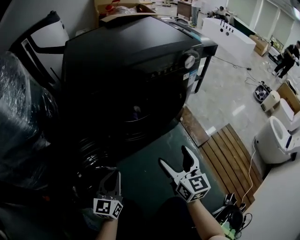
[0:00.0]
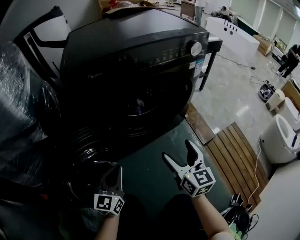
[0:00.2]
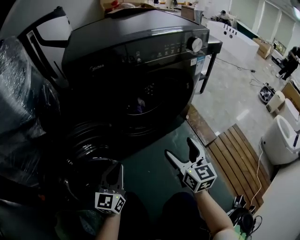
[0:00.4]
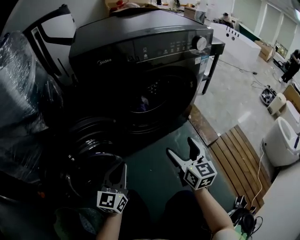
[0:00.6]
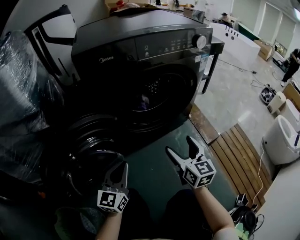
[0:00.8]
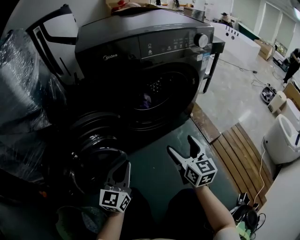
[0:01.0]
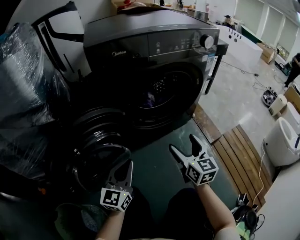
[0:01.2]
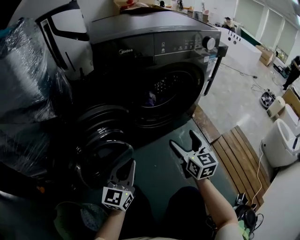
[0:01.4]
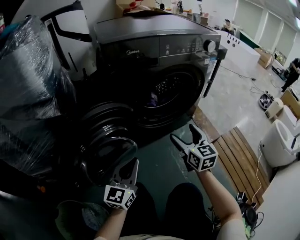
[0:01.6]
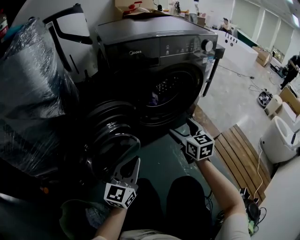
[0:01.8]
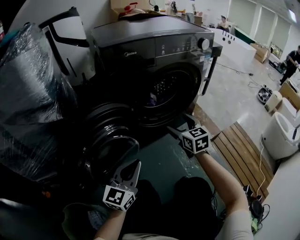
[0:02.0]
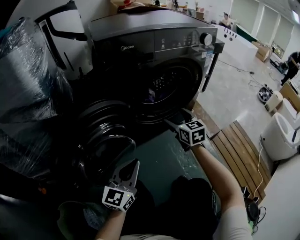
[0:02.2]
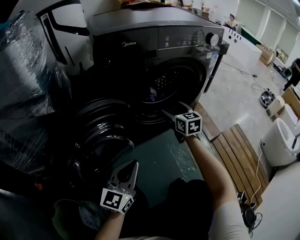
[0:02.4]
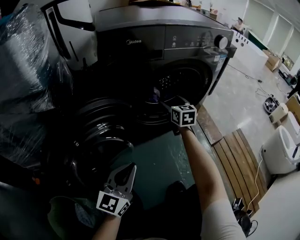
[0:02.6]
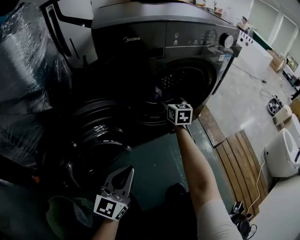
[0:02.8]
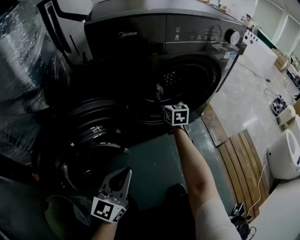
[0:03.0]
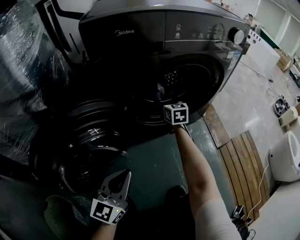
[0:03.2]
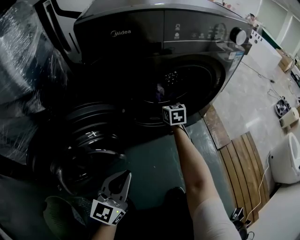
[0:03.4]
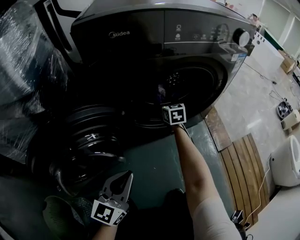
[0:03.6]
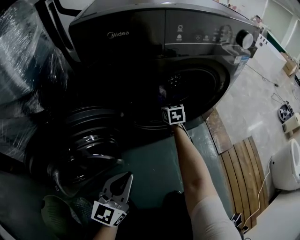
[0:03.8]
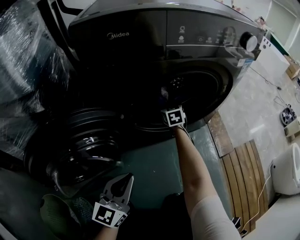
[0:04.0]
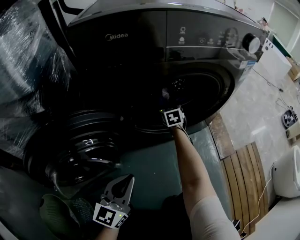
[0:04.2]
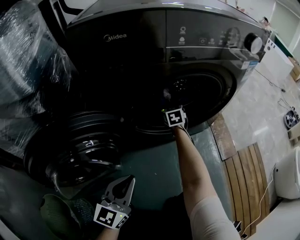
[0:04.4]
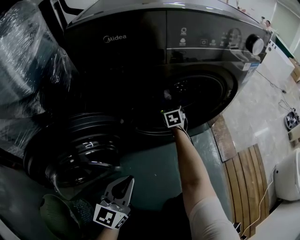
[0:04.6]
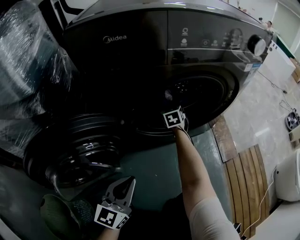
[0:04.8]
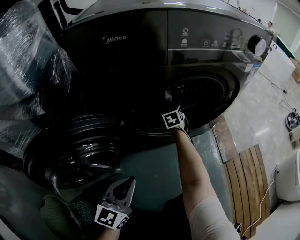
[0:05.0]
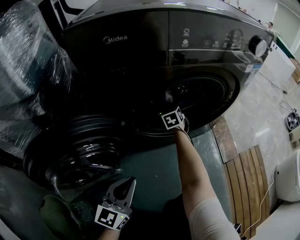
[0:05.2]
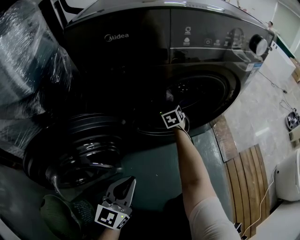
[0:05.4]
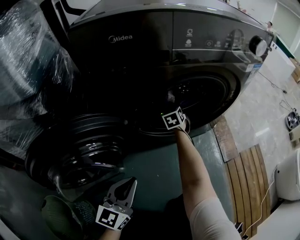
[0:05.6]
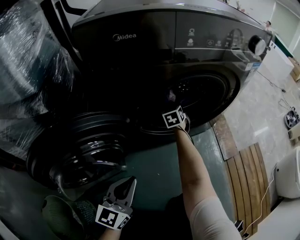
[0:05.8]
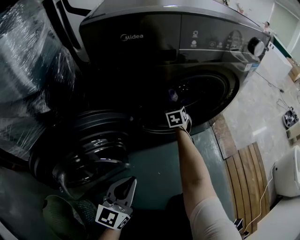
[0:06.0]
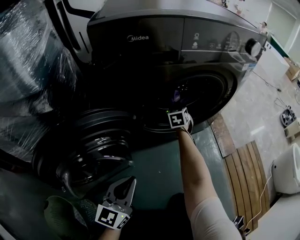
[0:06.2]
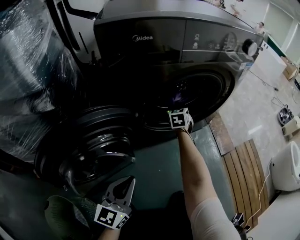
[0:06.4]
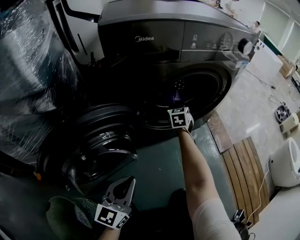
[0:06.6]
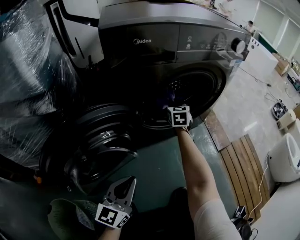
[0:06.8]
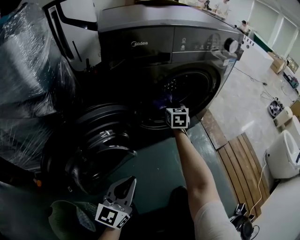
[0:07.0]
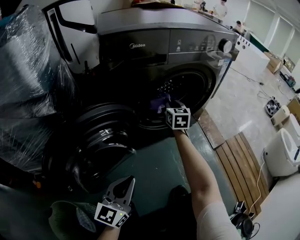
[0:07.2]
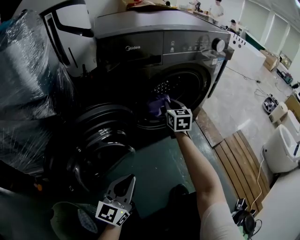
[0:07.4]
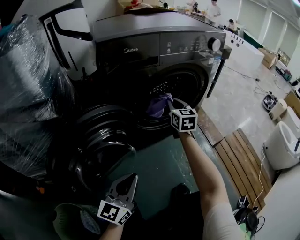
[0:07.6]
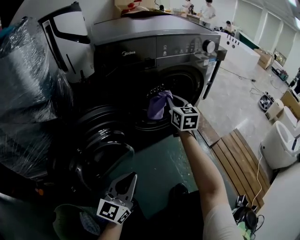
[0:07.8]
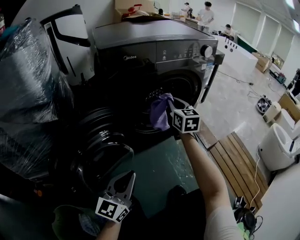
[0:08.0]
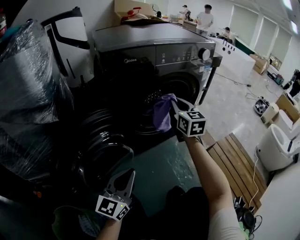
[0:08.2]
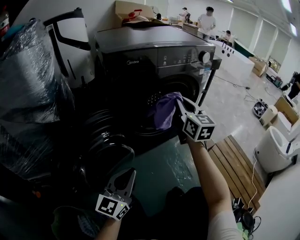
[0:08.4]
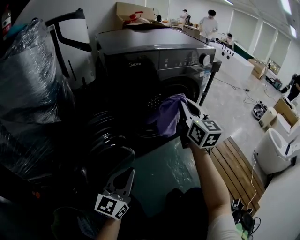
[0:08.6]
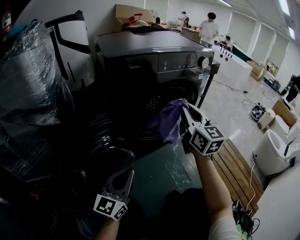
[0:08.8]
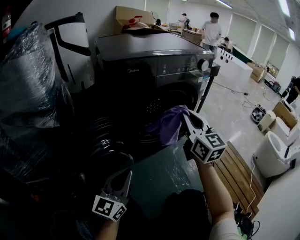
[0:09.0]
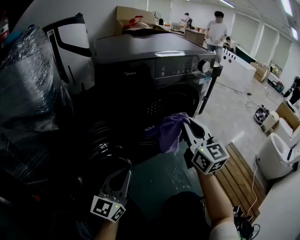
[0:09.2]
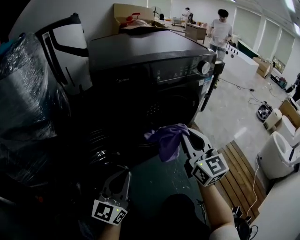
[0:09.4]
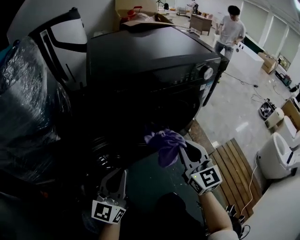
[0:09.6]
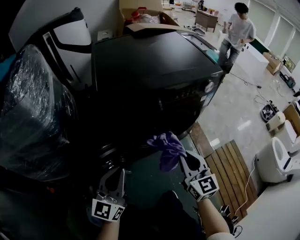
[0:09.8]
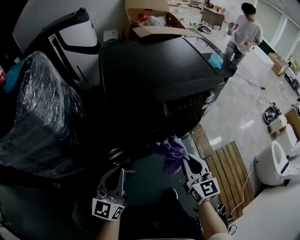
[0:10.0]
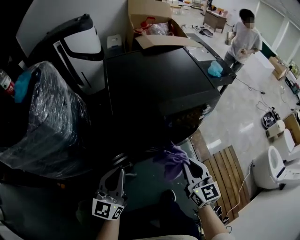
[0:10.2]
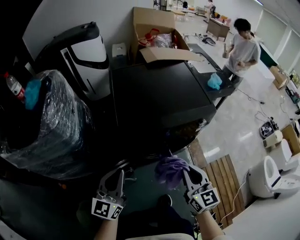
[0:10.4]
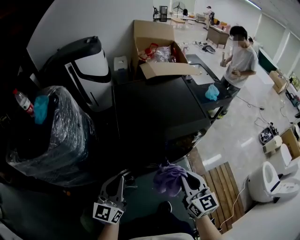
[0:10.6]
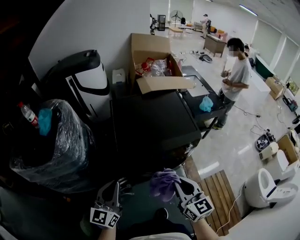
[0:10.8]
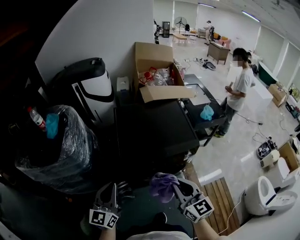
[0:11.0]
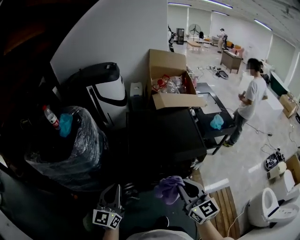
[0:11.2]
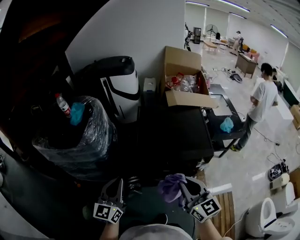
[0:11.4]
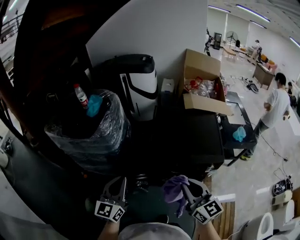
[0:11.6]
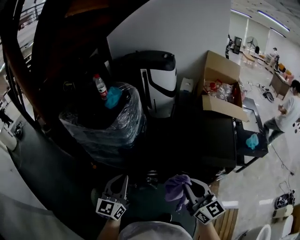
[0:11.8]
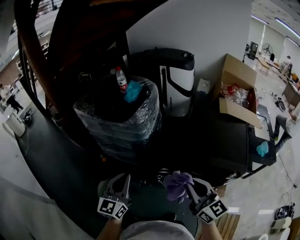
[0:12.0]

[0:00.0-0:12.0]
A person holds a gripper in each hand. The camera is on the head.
0:00.0 to 0:01.6: The left gripper heads backward and downward, covering about 10 cm; the right gripper shifts approximately 10 cm downward and to the left.
0:01.6 to 0:03.0: The right gripper goes about 30 cm forward and downward.
0:03.0 to 0:04.4: The left gripper changes place by approximately 5 cm; the right gripper moves forward and downward, some 10 cm.
0:04.4 to 0:06.0: The right gripper closes up.
0:06.0 to 0:07.6: The right gripper shifts about 25 cm upward and backward, and rotates some 30 degrees. The left gripper goes roughly 5 cm backward.
0:07.6 to 0:09.0: The left gripper moves upward, approximately 5 cm. Meanwhile the right gripper heads upward and backward, covering roughly 25 cm.
0:09.0 to 0:10.4: The left gripper goes some 35 cm upward; the right gripper heads upward, covering some 20 cm.
0:10.4 to 0:12.0: Both grippers move upward, approximately 25 cm. The left gripper rotates roughly 40 degrees. Meanwhile the right gripper turns by roughly 50 degrees.

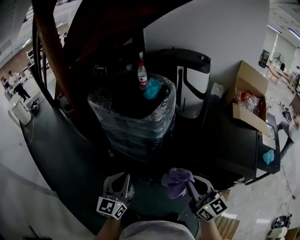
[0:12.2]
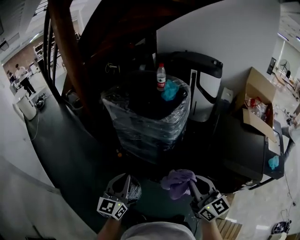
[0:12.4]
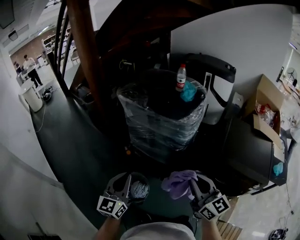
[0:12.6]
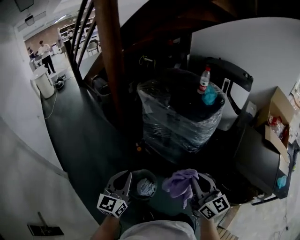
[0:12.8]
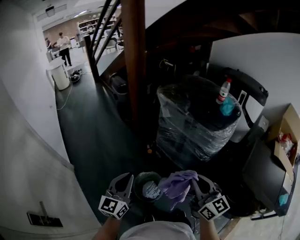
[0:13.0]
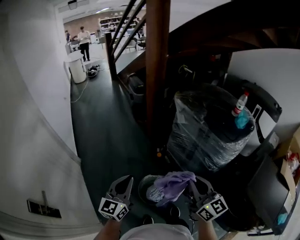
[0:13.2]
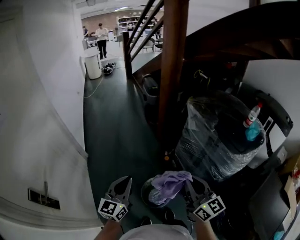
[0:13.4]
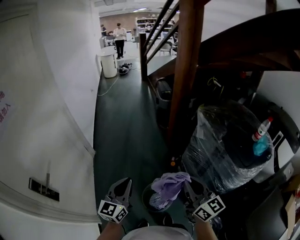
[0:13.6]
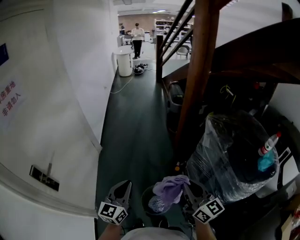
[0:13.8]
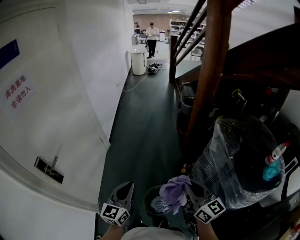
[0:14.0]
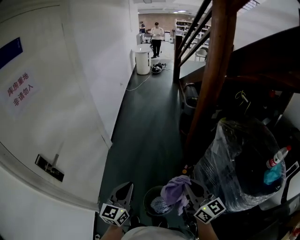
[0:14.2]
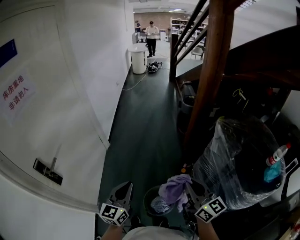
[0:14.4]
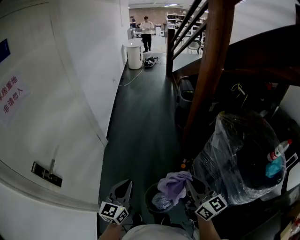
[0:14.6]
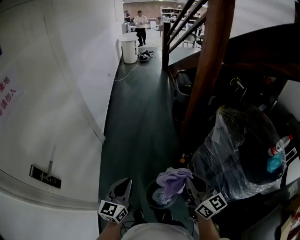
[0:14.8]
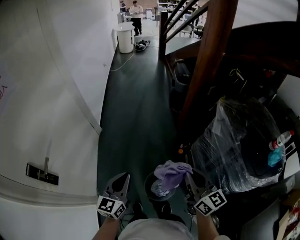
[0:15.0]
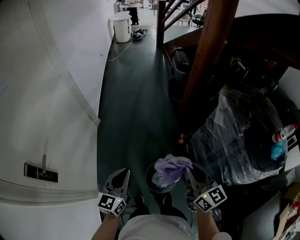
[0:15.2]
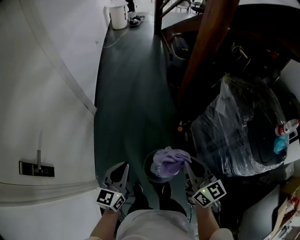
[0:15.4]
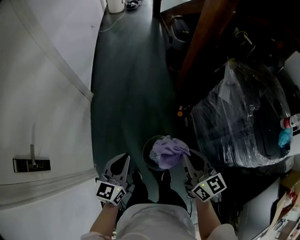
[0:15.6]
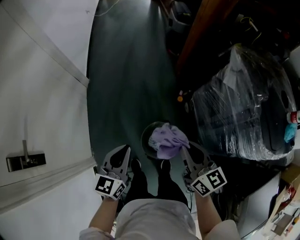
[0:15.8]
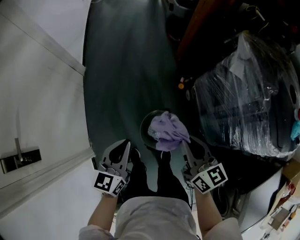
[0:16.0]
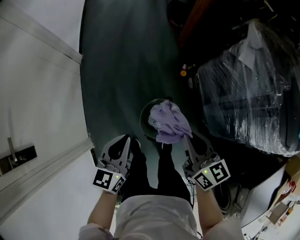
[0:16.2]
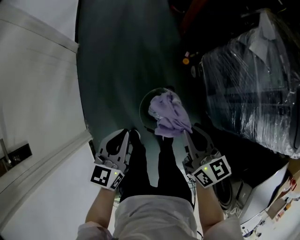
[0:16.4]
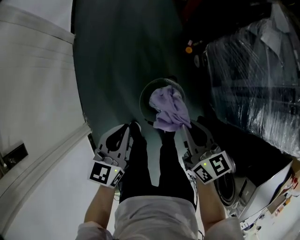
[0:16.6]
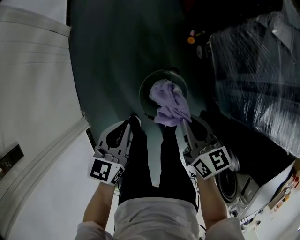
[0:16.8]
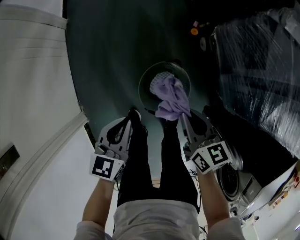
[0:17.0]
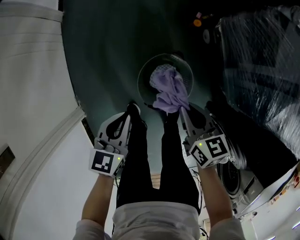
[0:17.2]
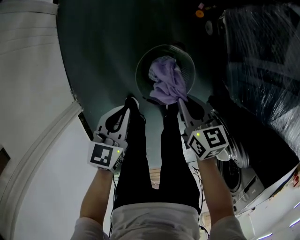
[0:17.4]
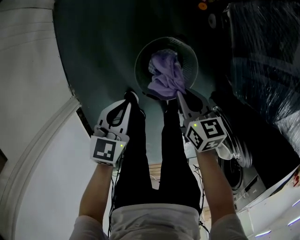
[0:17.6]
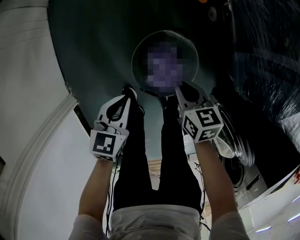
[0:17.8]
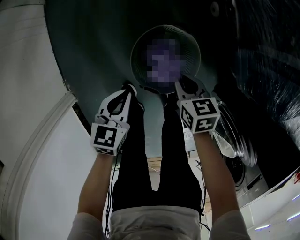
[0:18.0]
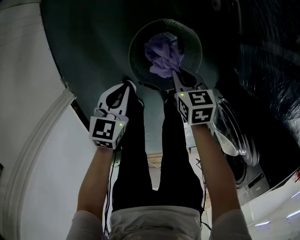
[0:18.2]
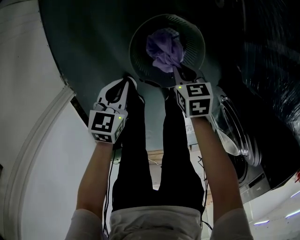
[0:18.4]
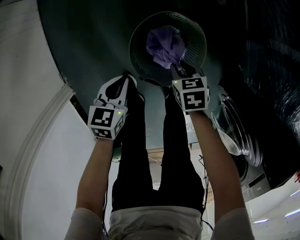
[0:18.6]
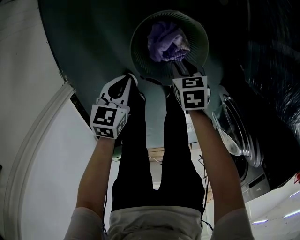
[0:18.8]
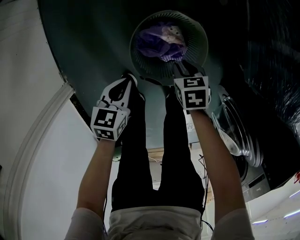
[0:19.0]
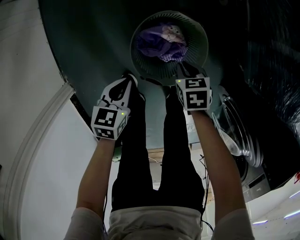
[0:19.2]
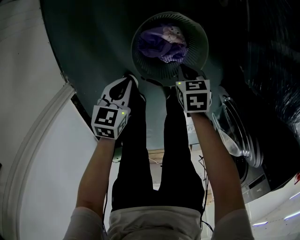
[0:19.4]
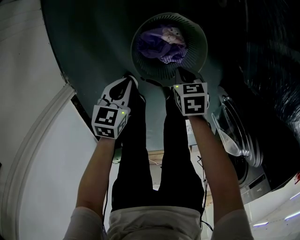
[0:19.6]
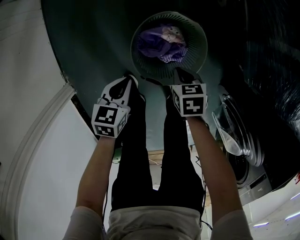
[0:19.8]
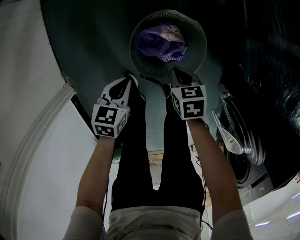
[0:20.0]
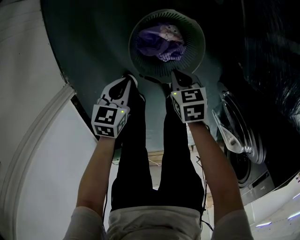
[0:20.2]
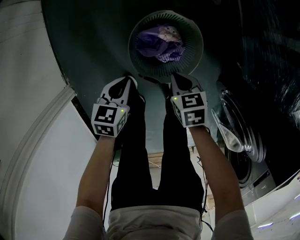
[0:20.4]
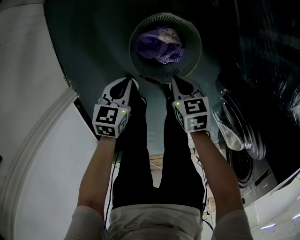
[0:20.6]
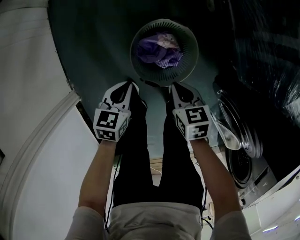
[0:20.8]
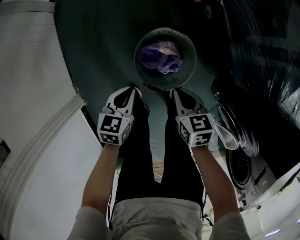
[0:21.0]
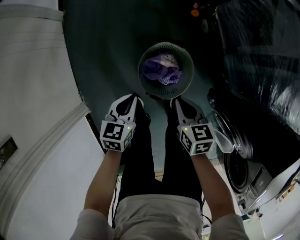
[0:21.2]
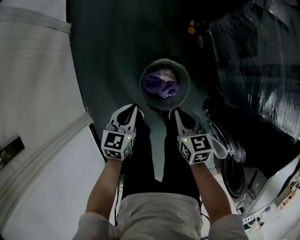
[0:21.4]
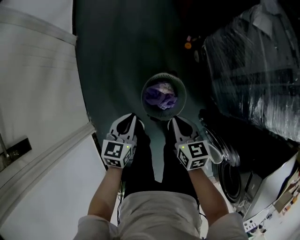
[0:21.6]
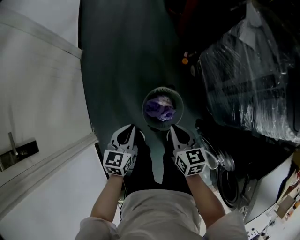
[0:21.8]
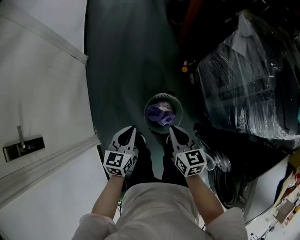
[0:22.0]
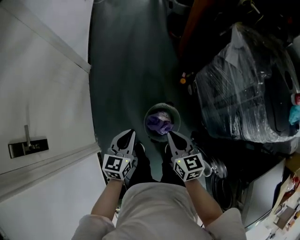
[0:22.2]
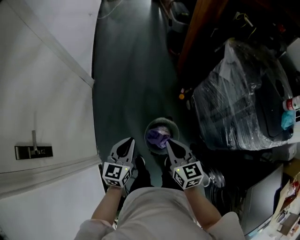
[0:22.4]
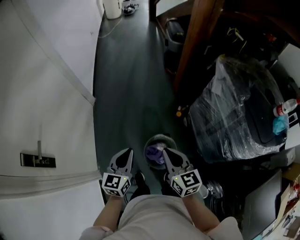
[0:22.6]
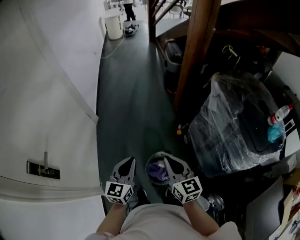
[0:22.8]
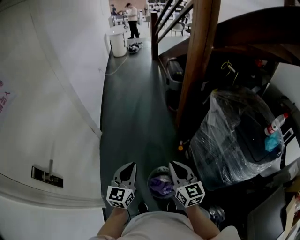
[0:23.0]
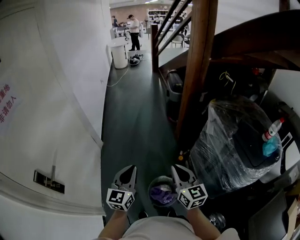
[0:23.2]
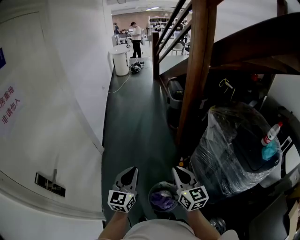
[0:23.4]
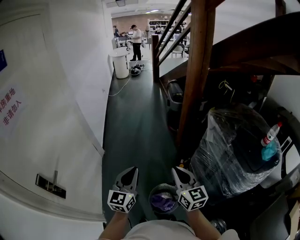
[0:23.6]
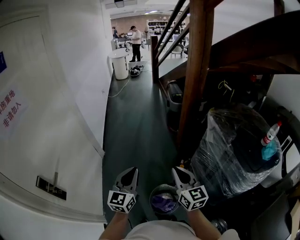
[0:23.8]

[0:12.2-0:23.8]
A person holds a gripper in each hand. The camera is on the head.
0:12.2 to 0:13.6: The right gripper changes place by some 50 cm, and rotates about 50 degrees, while the left gripper ends up about 40 cm from where it was, and swivels roughly 50 degrees.
0:13.6 to 0:15.0: The right gripper is displaced forward by some 5 cm. Meanwhile the left gripper moves about 5 cm.
0:15.0 to 0:16.6: The grippers both shift downward by roughly 30 cm. The left gripper rotates roughly 20 degrees. The right gripper swivels about 30 degrees.
0:16.6 to 0:18.0: The grippers both shift downward by about 35 cm. The right gripper turns by approximately 30 degrees; the left gripper rotates some 20 degrees.
0:18.0 to 0:19.4: Both grippers travel together downward, some 10 cm.
0:19.4 to 0:21.0: The left gripper heads upward, covering some 10 cm. Meanwhile the right gripper is displaced upward by some 15 cm, and rotates about 20 degrees.
0:21.0 to 0:22.4: Both grippers travel together upward, approximately 40 cm. The left gripper swivels approximately 30 degrees, while the right gripper rotates about 30 degrees.
0:22.4 to 0:23.8: Both grippers move upward, approximately 20 cm. The left gripper swivels some 20 degrees; the right gripper changes its angle by approximately 20 degrees.
